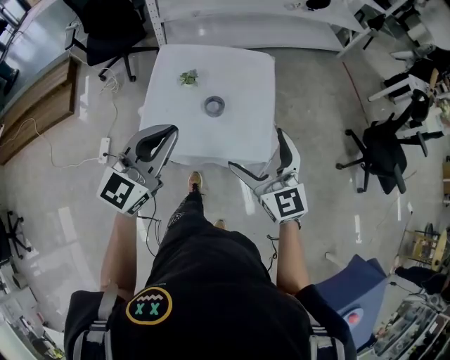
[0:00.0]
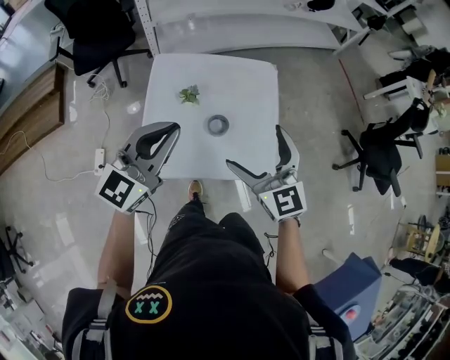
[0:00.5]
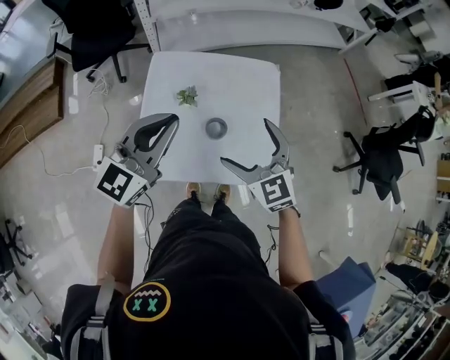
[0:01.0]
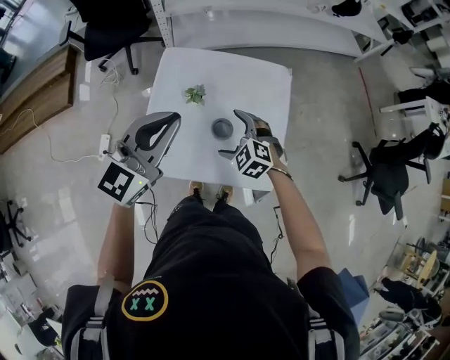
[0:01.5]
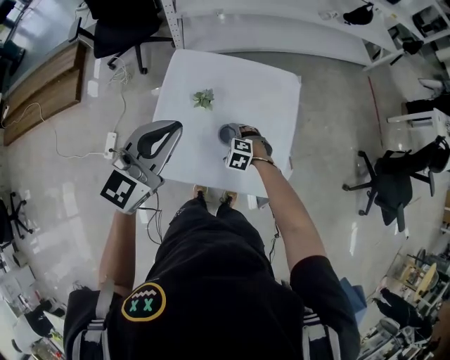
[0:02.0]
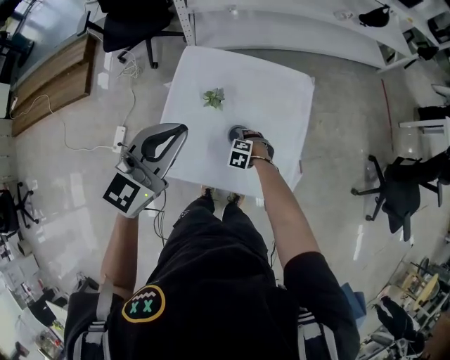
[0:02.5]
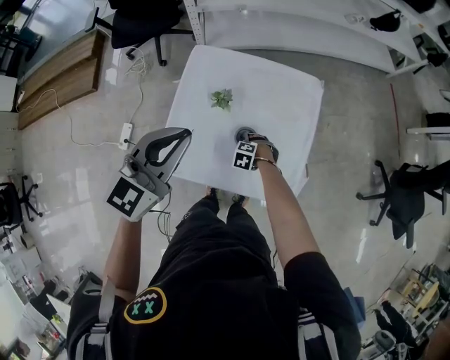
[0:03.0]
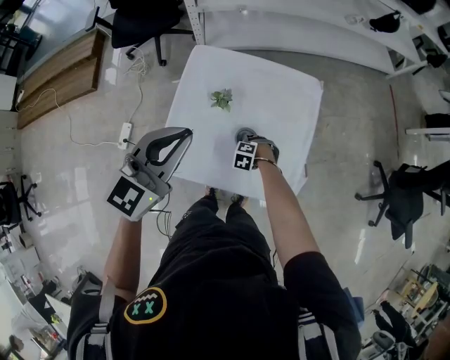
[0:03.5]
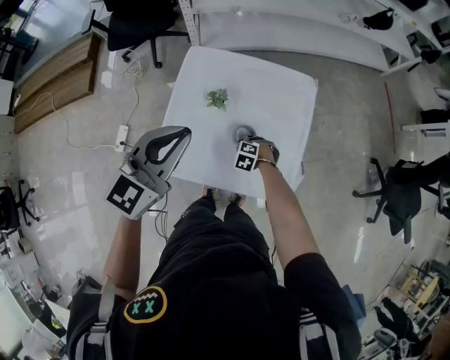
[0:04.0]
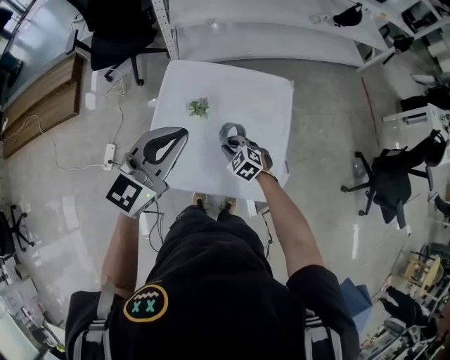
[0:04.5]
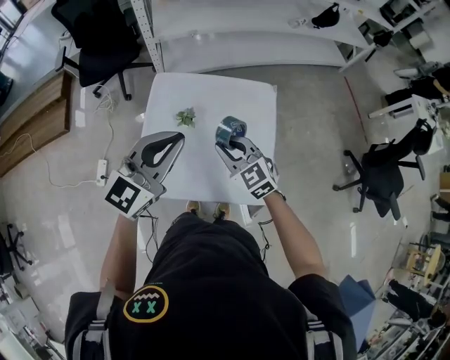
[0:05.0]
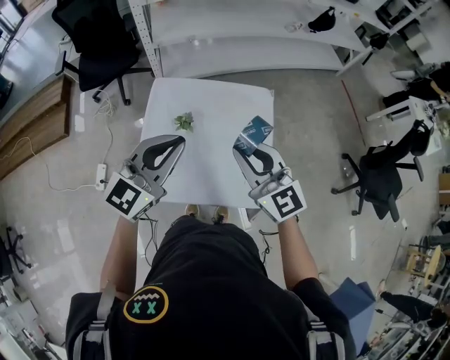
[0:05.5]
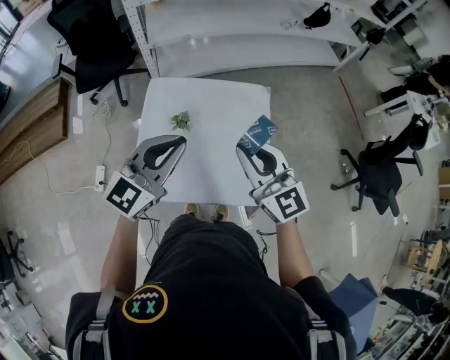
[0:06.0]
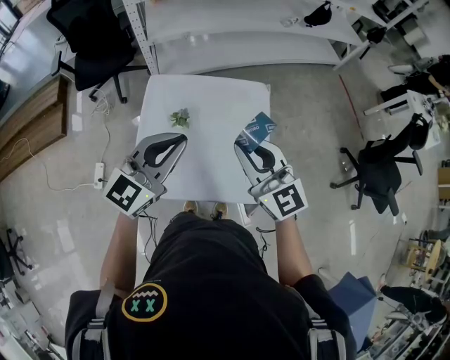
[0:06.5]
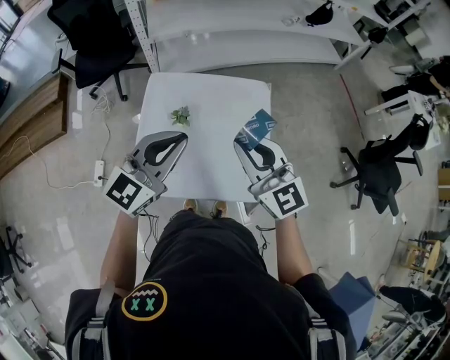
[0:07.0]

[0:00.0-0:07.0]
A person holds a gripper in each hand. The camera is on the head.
0:00.0 to 0:02.0: The right gripper is displaced downward and forward by some 40 cm, and angles its fingers downward, by roughly 60 degrees. The left gripper shifts about 20 cm forward.
0:02.0 to 0:03.5: The right gripper moves downward, approximately 10 cm, and closes up.
0:03.5 to 0:05.0: The left gripper moves about 5 cm. The right gripper is displaced upward by approximately 35 cm, and tilts its fingers about 50 degrees upward.
0:05.0 to 0:07.0: The right gripper travels upward and to the right by roughly 15 cm, and swivels about 20 degrees.

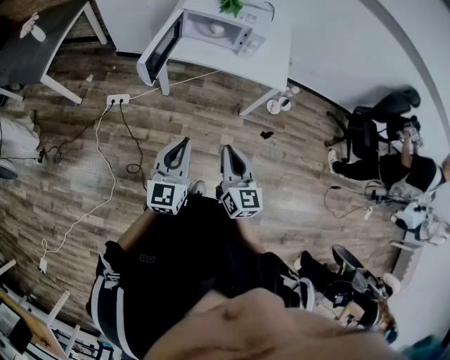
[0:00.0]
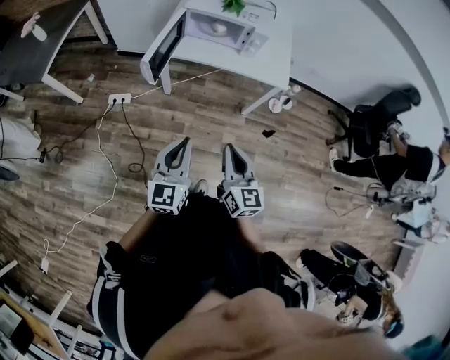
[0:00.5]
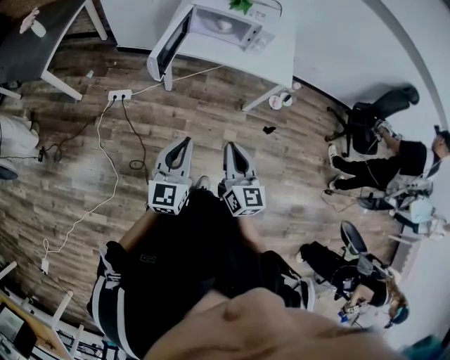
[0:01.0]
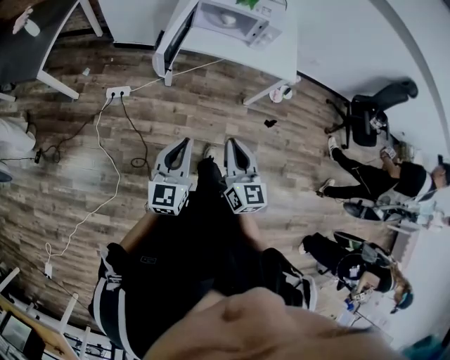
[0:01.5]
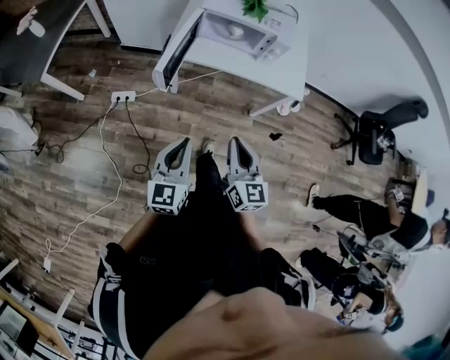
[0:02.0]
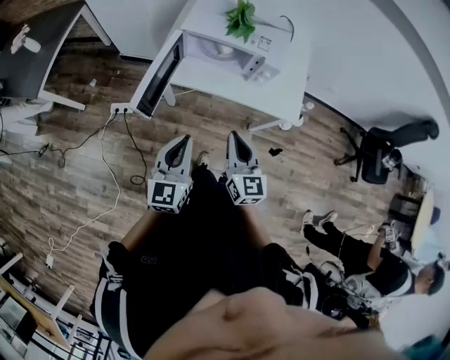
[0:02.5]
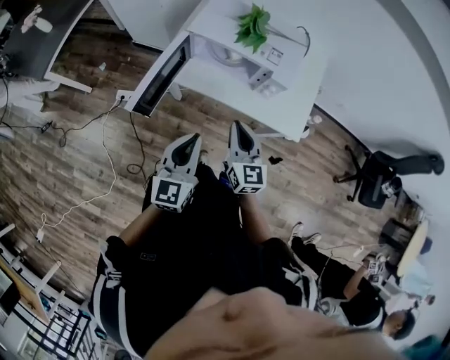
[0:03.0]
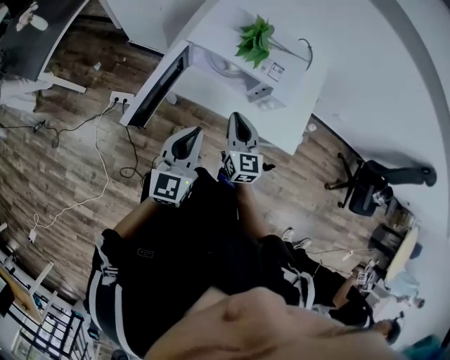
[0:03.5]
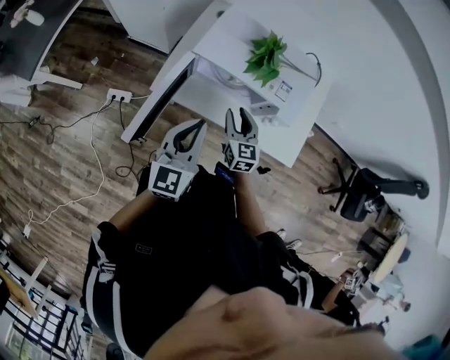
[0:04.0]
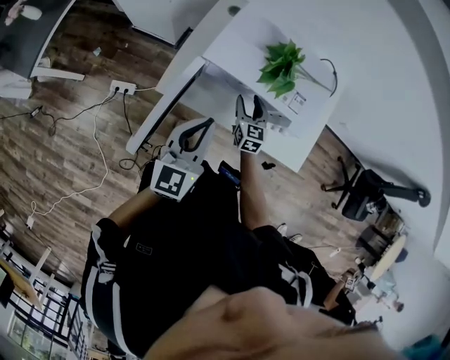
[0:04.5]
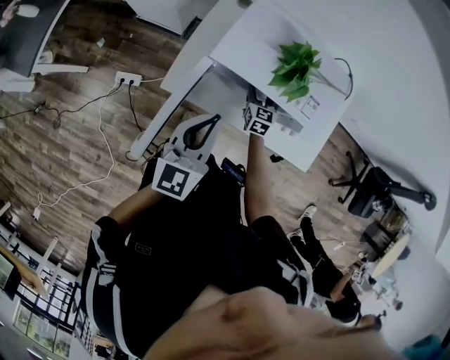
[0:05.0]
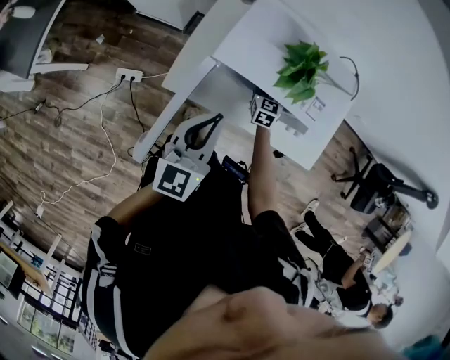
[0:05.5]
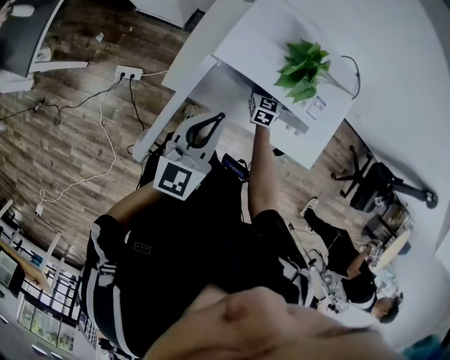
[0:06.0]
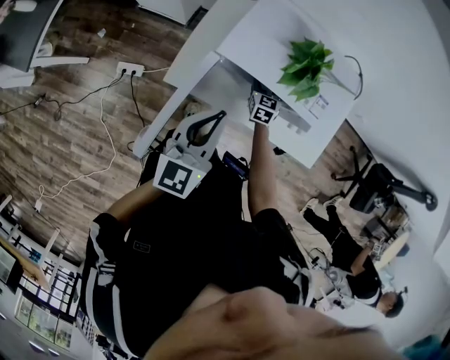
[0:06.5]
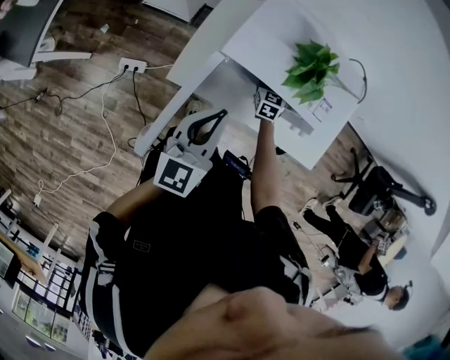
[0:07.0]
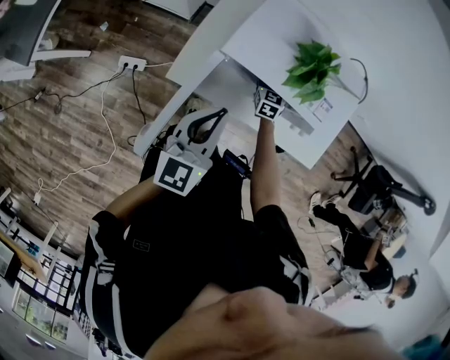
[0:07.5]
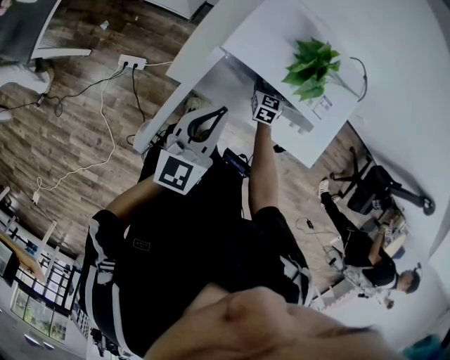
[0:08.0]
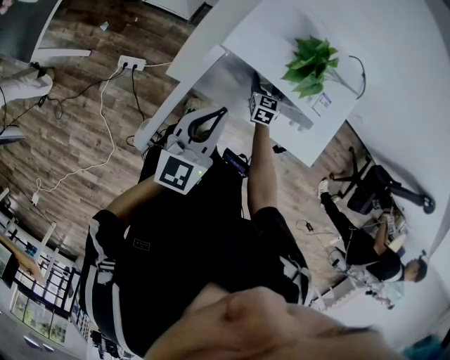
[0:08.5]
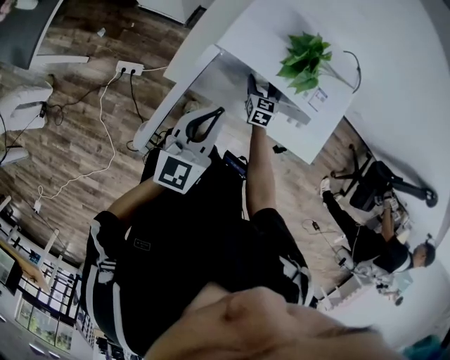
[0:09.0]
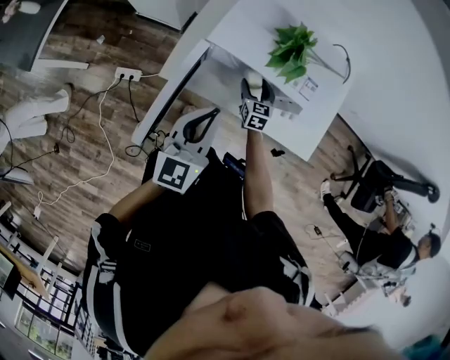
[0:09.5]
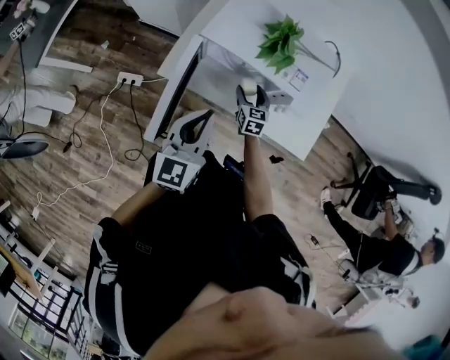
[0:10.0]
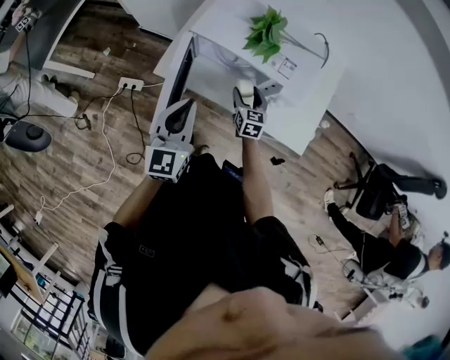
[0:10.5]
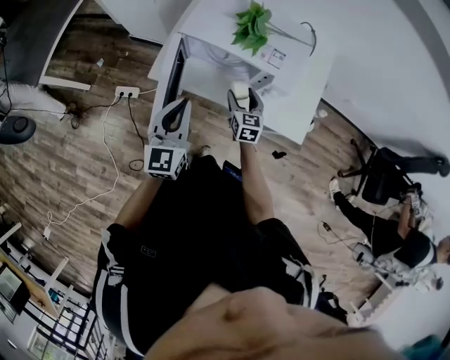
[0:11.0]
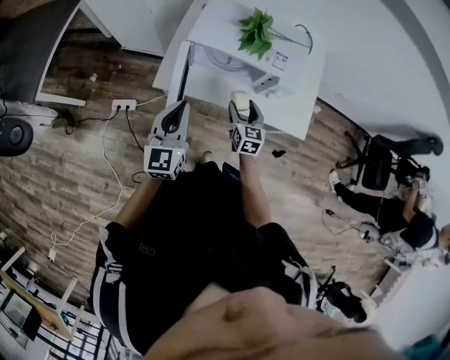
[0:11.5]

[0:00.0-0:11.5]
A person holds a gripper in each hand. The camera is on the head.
0:00.0 to 0:02.0: The right gripper goes approximately 10 cm forward and to the left. Meanwhile the left gripper is displaced to the left and forward by roughly 10 cm.
0:02.0 to 0:04.0: Both grippers move forward, some 40 cm. The right gripper opens up.
0:04.0 to 0:06.0: The right gripper goes roughly 25 cm forward and downward, and opens up. Meanwhile the left gripper goes approximately 10 cm forward.
0:06.0 to 0:07.5: There are only small adjustments of the grippers.
0:07.5 to 0:09.5: The left gripper changes place by approximately 5 cm; the right gripper goes approximately 10 cm backward.
0:09.5 to 0:11.5: The left gripper is displaced backward by about 5 cm, while the right gripper moves backward and upward, about 20 cm.

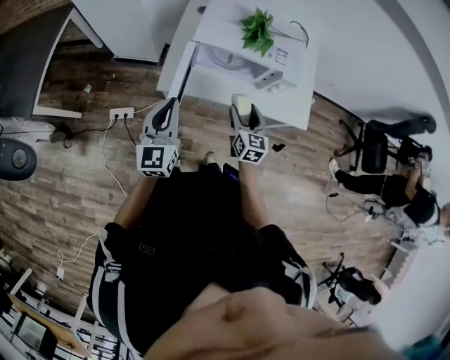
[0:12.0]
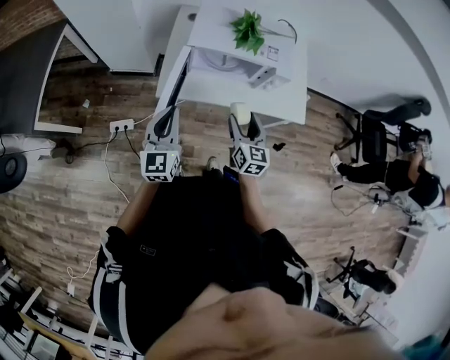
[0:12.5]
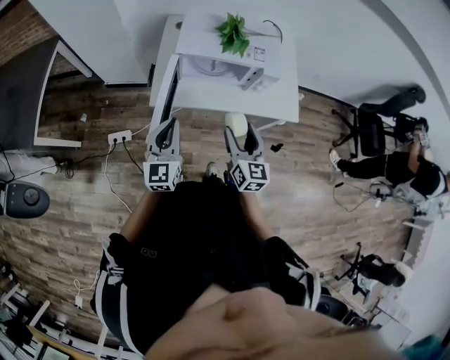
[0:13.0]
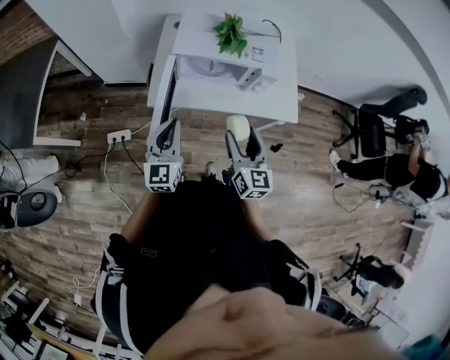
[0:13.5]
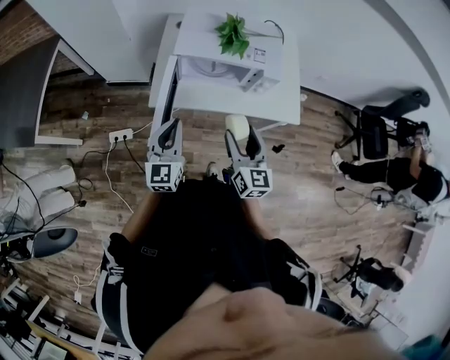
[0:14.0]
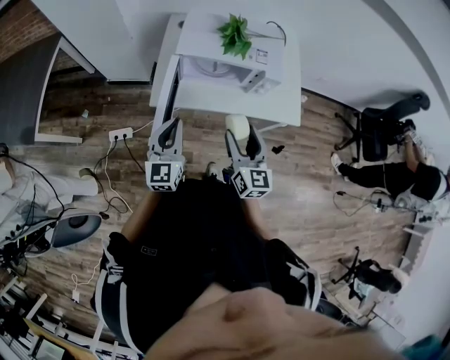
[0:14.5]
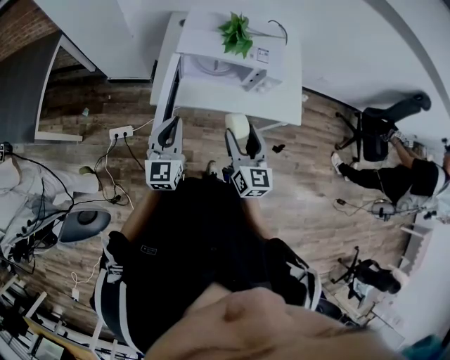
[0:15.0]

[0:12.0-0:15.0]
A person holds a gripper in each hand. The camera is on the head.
0:12.0 to 0:13.5: The left gripper shifts by approximately 5 cm. Meanwhile the right gripper goes approximately 15 cm upward and backward.
0:13.5 to 0:15.0: The grippers move only a little.

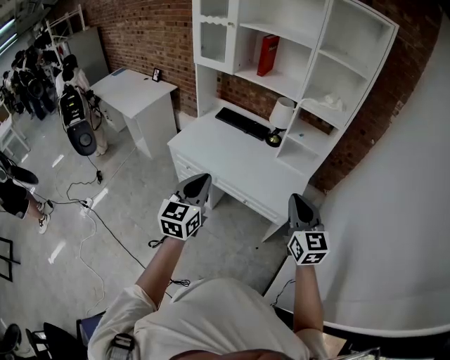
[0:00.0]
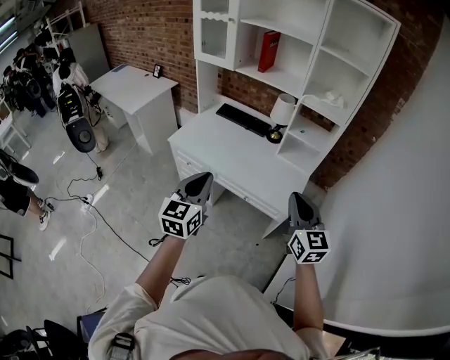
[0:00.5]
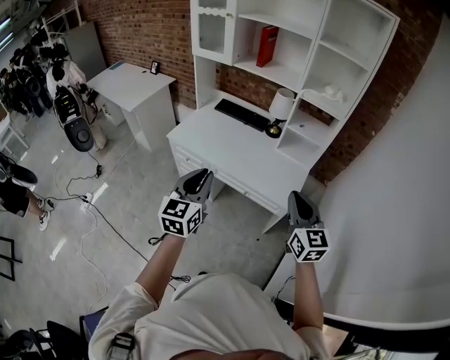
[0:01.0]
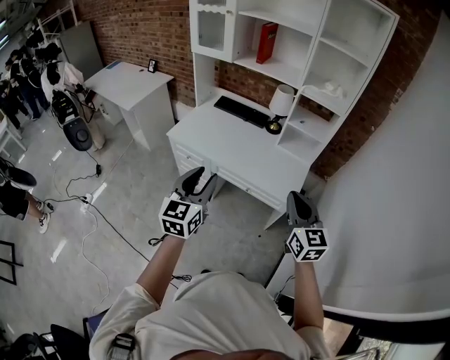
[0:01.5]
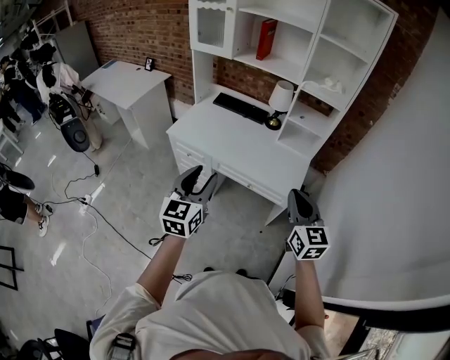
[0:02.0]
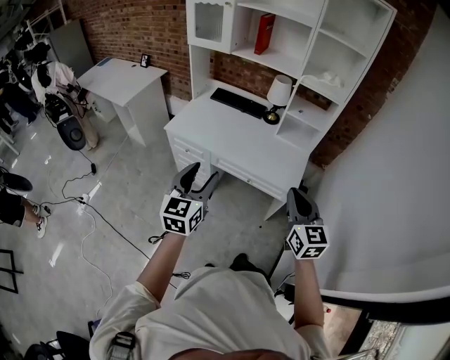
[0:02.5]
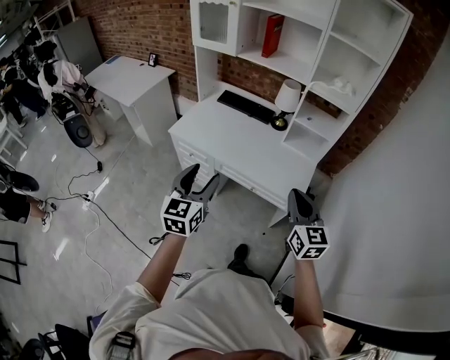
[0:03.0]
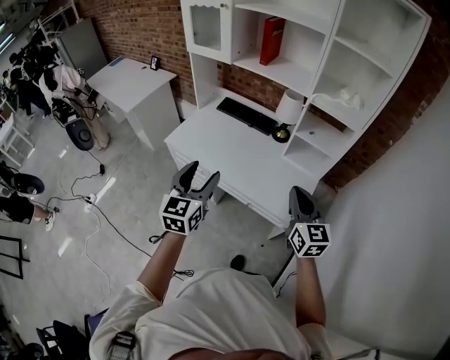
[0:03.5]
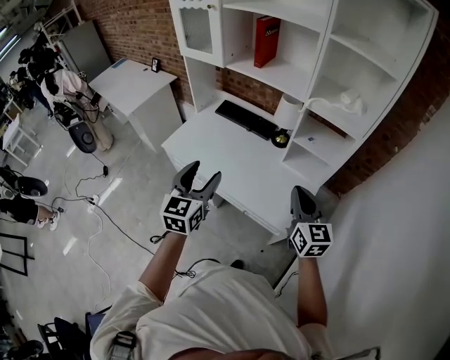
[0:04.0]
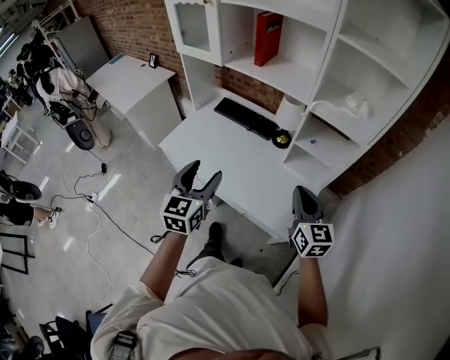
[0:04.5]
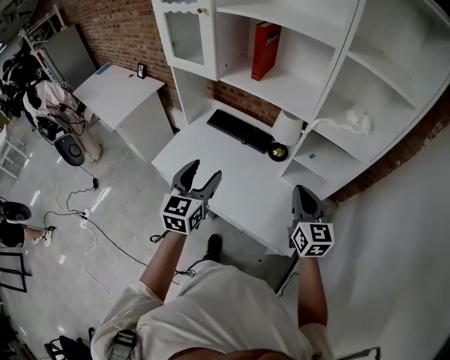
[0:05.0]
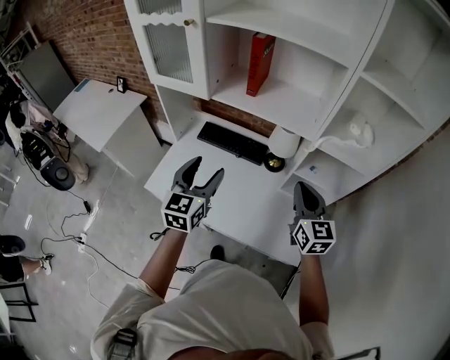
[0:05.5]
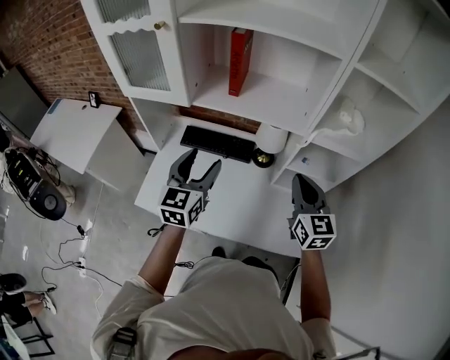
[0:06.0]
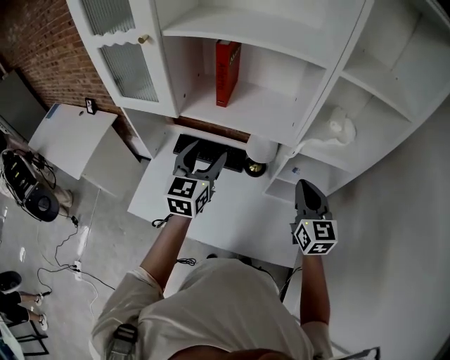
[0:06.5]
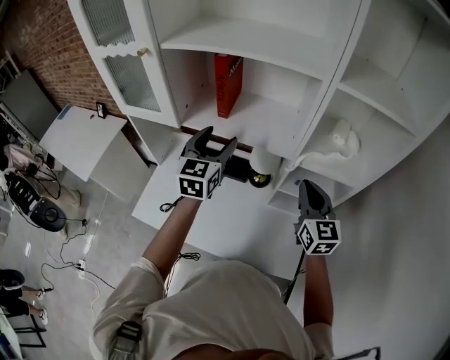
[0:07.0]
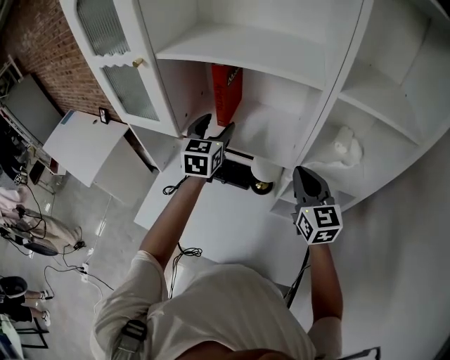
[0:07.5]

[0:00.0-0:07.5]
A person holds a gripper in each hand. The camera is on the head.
0:00.0 to 0:02.0: The right gripper changes place by about 5 cm. The left gripper moves about 5 cm, and opens up.
0:02.0 to 0:04.0: Both grippers move forward and to the right, approximately 25 cm.
0:04.0 to 0:05.5: Both grippers travel together forward, approximately 25 cm.
0:05.5 to 0:07.5: The left gripper heads forward, covering about 25 cm. Meanwhile the right gripper moves forward and upward, approximately 15 cm.
